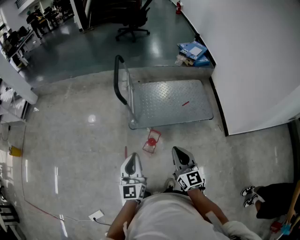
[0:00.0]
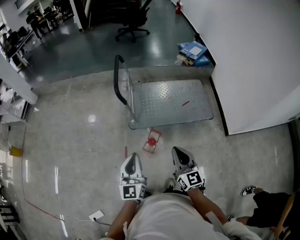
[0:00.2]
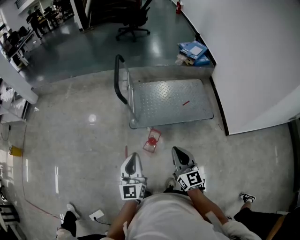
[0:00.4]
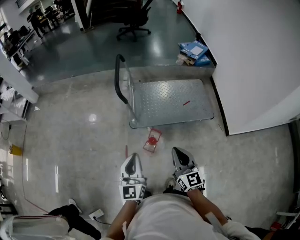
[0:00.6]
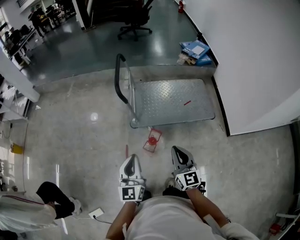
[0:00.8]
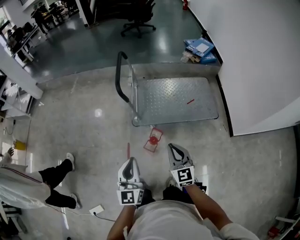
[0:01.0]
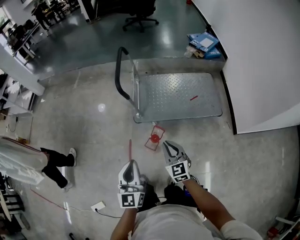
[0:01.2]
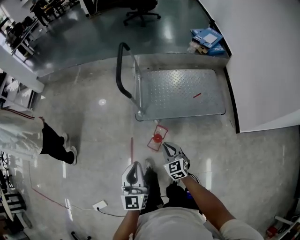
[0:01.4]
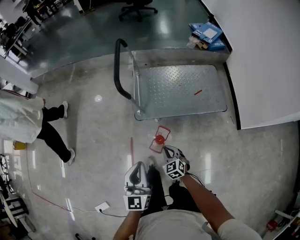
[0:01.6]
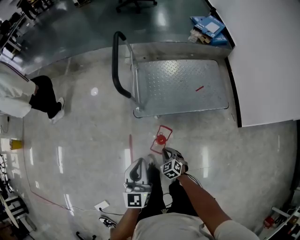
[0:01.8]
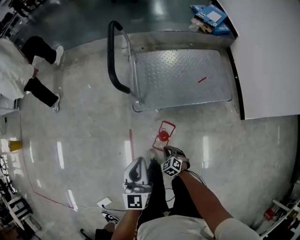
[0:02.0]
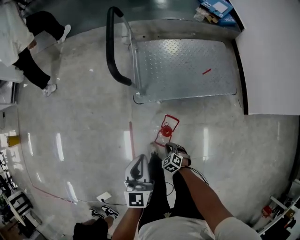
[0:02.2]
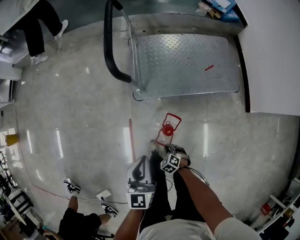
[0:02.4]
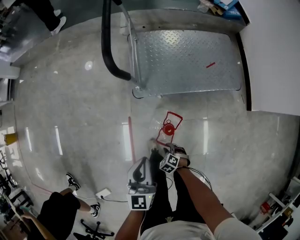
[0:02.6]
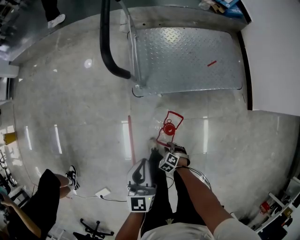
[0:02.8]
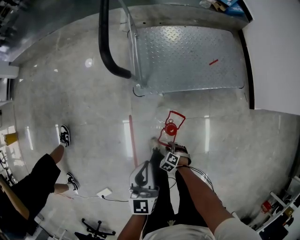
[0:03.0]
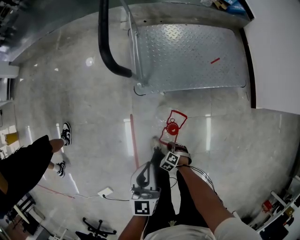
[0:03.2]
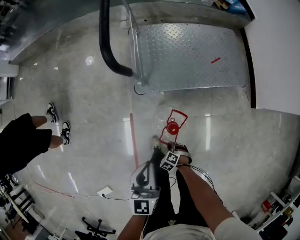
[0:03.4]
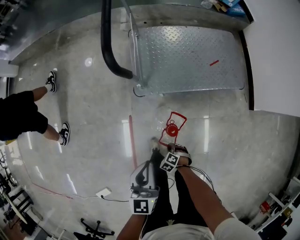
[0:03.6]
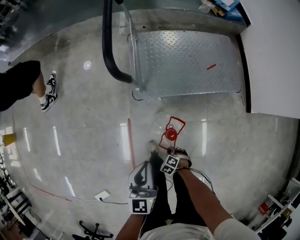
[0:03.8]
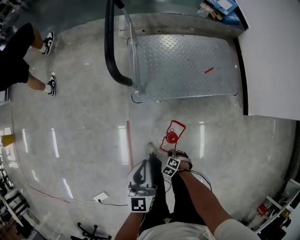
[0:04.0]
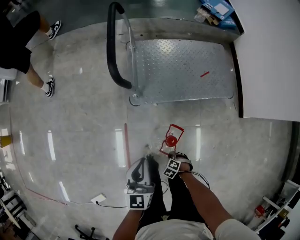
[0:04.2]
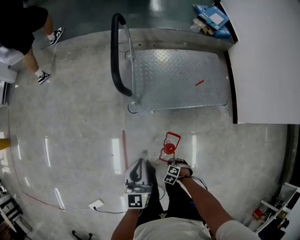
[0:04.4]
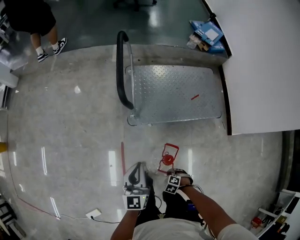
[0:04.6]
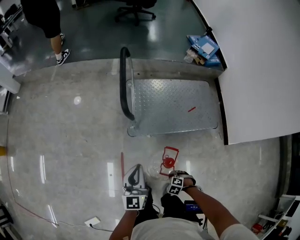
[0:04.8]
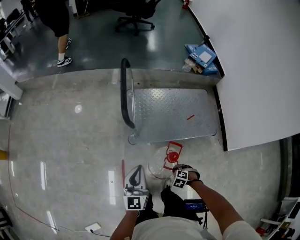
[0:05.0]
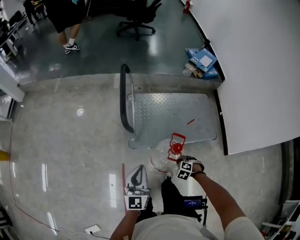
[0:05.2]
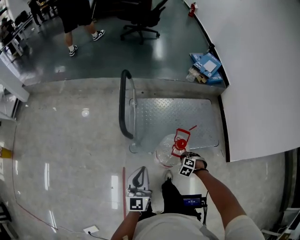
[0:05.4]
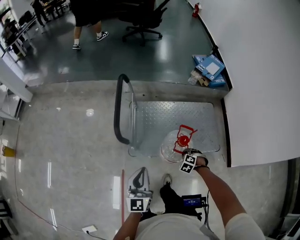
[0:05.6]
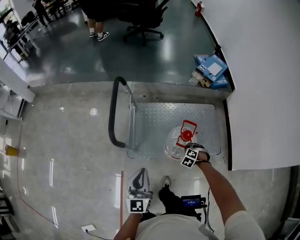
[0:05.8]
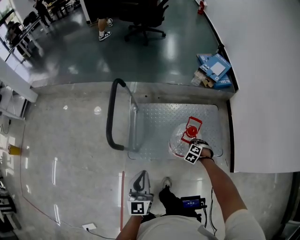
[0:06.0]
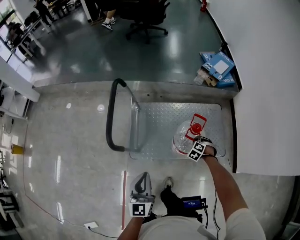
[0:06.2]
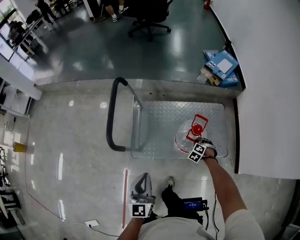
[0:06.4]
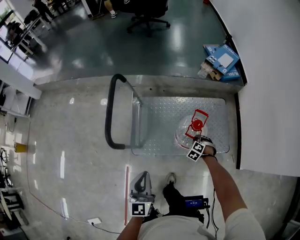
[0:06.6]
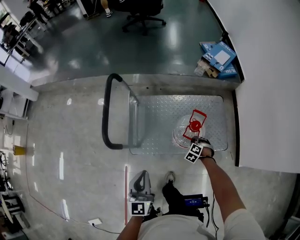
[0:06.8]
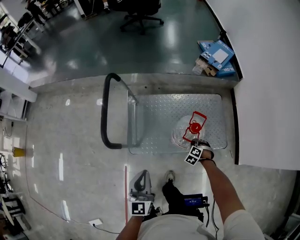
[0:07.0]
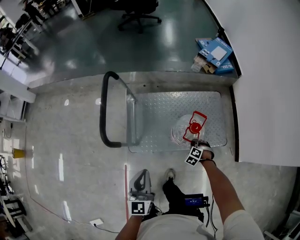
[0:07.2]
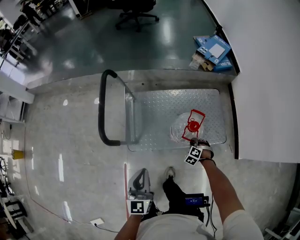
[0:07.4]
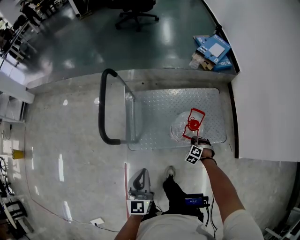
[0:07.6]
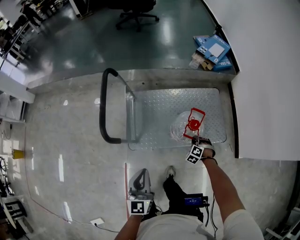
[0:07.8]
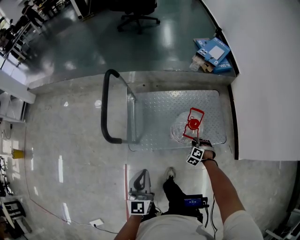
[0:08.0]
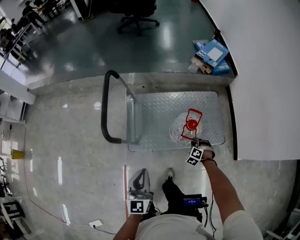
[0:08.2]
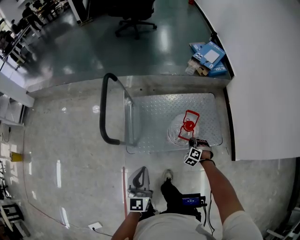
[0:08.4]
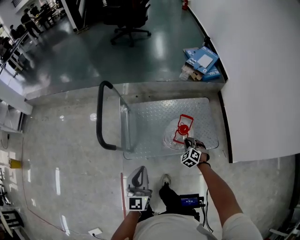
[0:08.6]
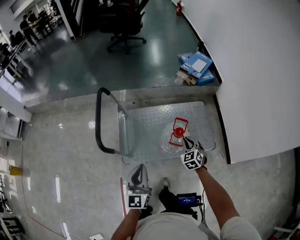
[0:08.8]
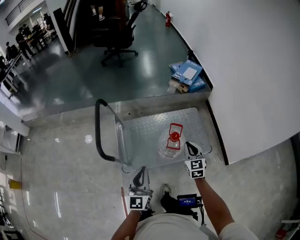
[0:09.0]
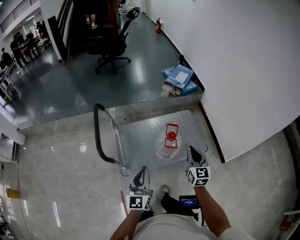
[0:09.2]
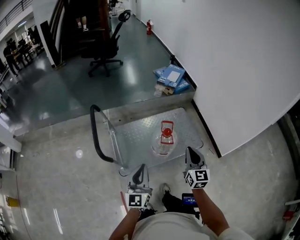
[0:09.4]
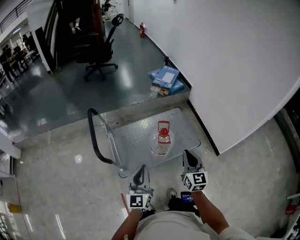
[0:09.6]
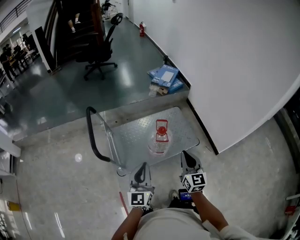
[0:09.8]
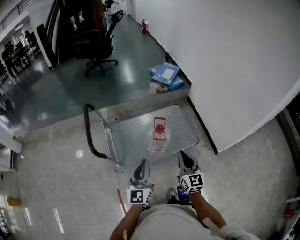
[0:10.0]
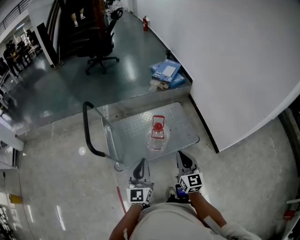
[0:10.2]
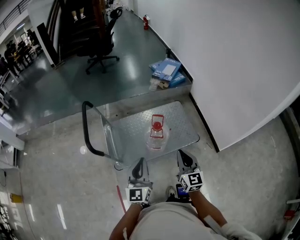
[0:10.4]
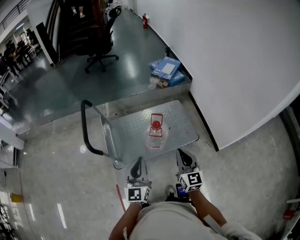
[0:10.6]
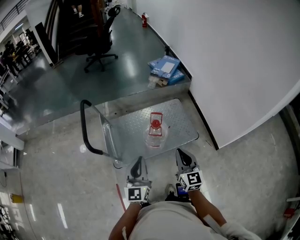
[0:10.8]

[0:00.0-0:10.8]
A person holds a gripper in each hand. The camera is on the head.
0.0 to 1.6 s: The right gripper heads downward, covering about 25 cm, and tilts its fingers approximately 40 degrees downward. The left gripper travels forward and downward by roughly 10 cm.
1.6 to 3.0 s: The right gripper is displaced downward by some 30 cm, points its fingers some 40 degrees further downward, and opens up, while the left gripper heads downward, covering some 20 cm.
3.0 to 4.6 s: The right gripper is displaced upward by roughly 15 cm. Meanwhile the left gripper travels upward by about 5 cm.
4.6 to 6.2 s: The left gripper changes place by roughly 25 cm. The right gripper moves some 60 cm, and rotates some 30 degrees.
6.2 to 7.8 s: The right gripper shifts approximately 5 cm backward.
7.8 to 9.2 s: The left gripper travels upward by some 10 cm, and turns by approximately 20 degrees. The right gripper heads upward, covering roughly 35 cm, and tips its fingers upward by approximately 50 degrees.
9.2 to 10.8 s: The left gripper travels to the right by some 10 cm, while the right gripper goes about 10 cm backward.

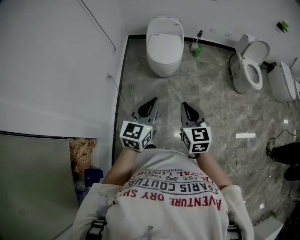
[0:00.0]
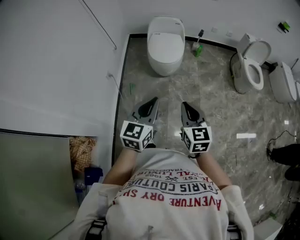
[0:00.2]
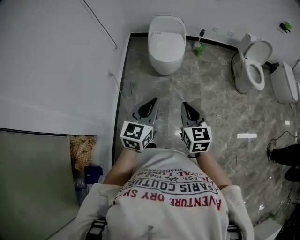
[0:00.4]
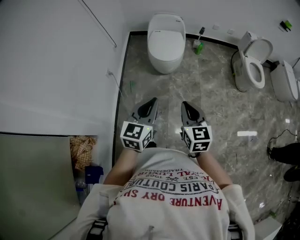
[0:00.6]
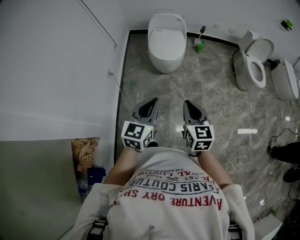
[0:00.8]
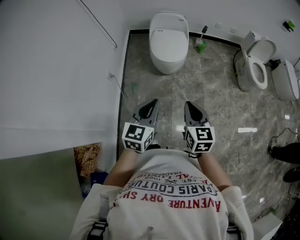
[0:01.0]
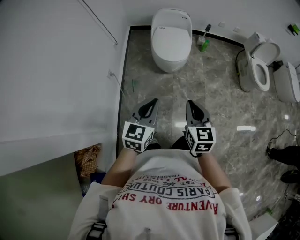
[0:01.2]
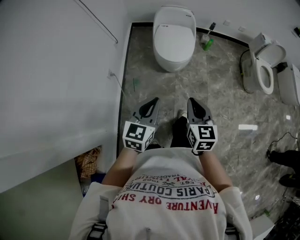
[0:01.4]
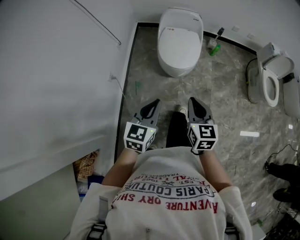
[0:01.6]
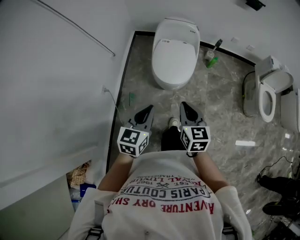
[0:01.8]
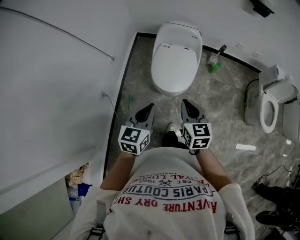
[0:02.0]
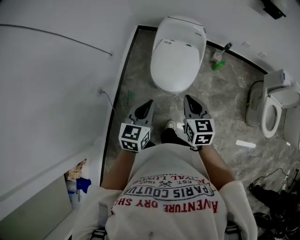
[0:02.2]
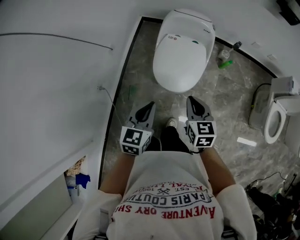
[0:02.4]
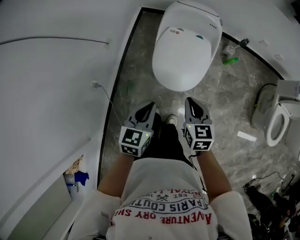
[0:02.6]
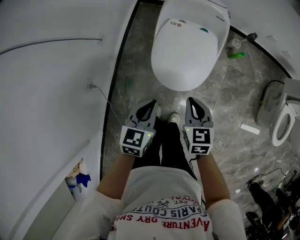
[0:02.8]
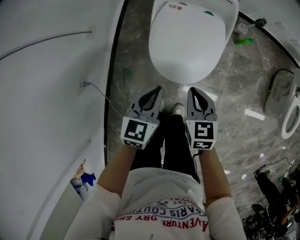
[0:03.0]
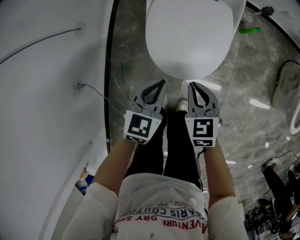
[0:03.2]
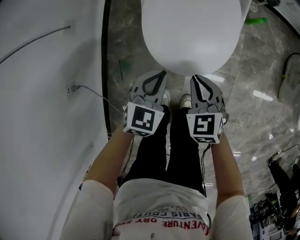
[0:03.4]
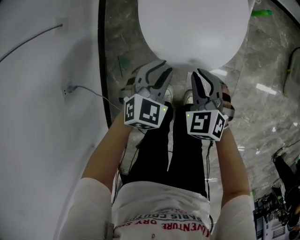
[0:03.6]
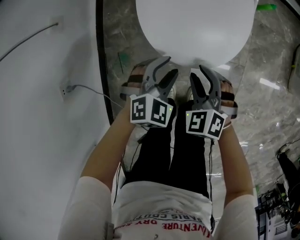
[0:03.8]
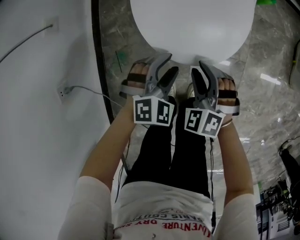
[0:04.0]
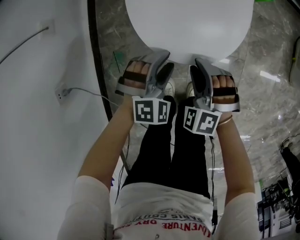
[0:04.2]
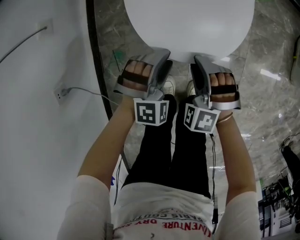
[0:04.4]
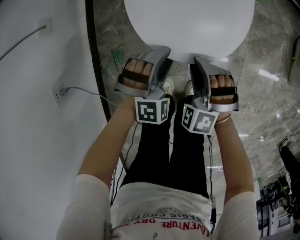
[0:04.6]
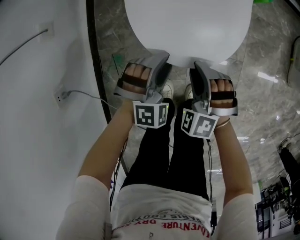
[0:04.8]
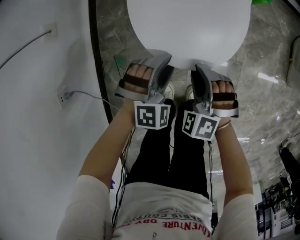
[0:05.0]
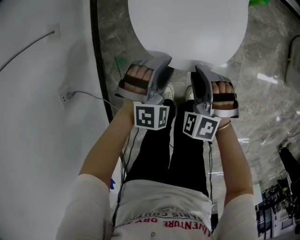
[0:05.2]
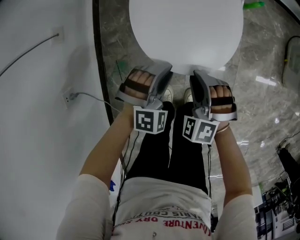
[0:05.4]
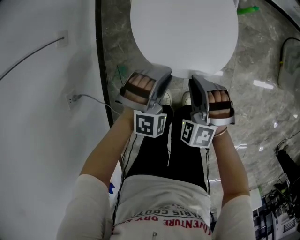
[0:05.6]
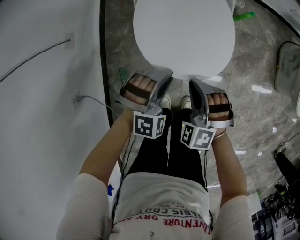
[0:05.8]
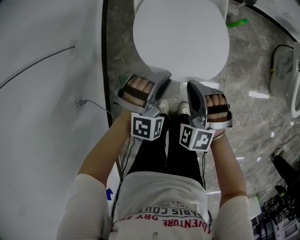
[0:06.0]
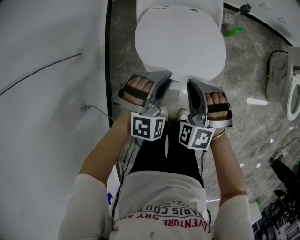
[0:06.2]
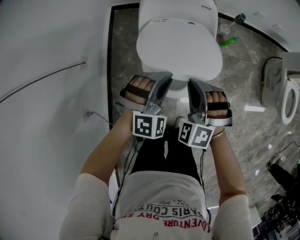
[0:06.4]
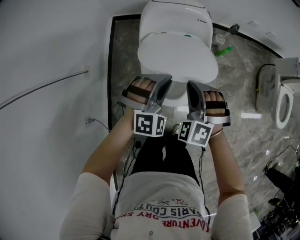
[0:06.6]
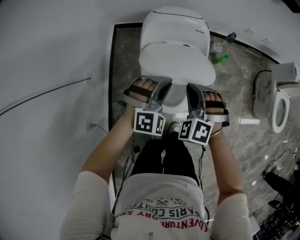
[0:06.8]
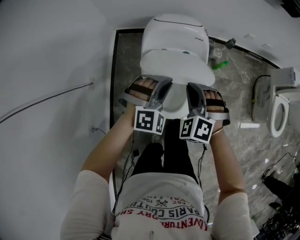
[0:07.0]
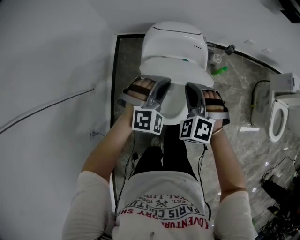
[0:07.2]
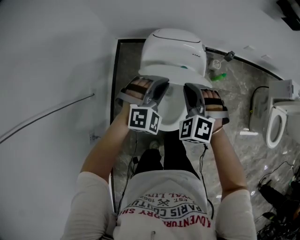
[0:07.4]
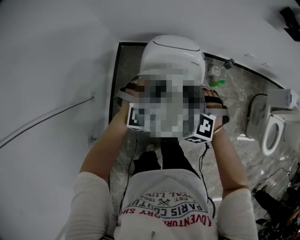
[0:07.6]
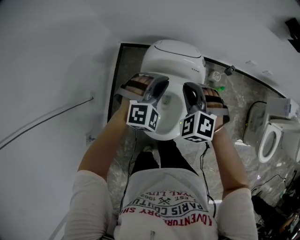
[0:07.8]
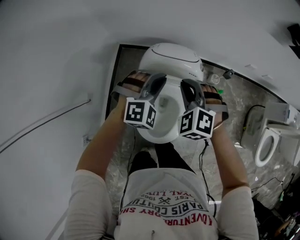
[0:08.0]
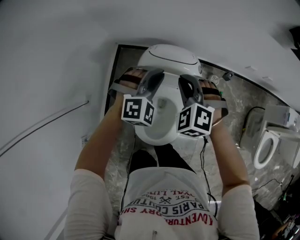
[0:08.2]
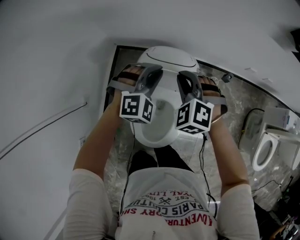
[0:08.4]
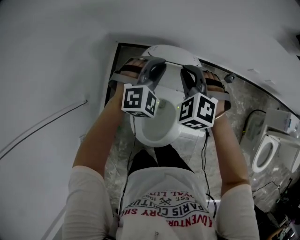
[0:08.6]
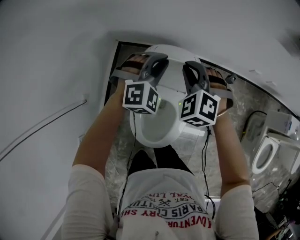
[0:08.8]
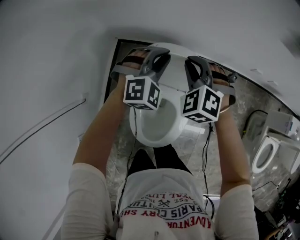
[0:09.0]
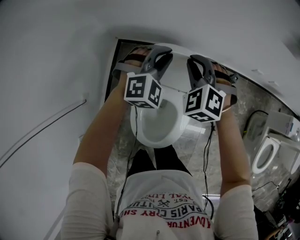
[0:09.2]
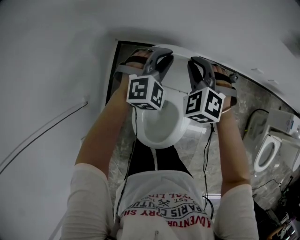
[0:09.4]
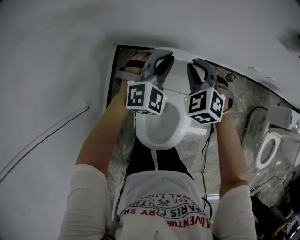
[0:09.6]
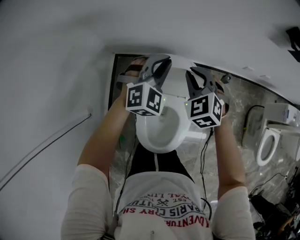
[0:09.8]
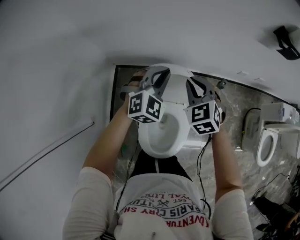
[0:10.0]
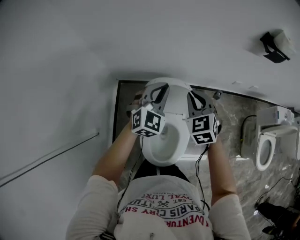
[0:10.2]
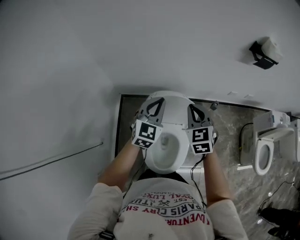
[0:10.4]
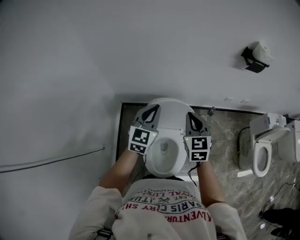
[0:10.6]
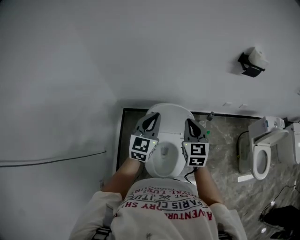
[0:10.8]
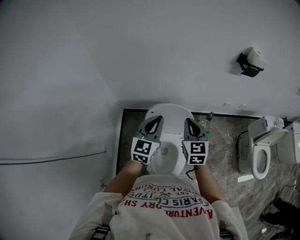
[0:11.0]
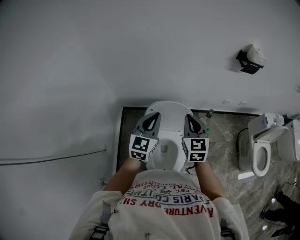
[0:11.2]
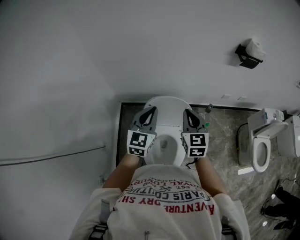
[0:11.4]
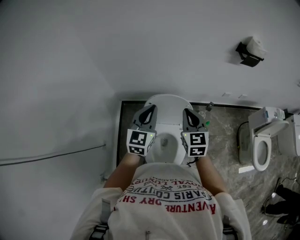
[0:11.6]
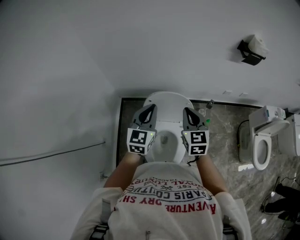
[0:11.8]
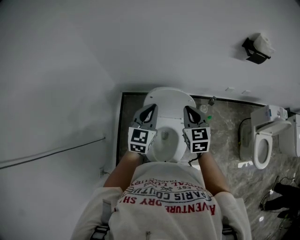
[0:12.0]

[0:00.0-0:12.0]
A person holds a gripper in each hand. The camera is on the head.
0.0 to 1.6 s: Both grippers move forward, some 25 cm.
1.6 to 3.0 s: The two grippers go some 50 cm forward and downward. The right gripper rotates approximately 20 degrees.
3.0 to 4.4 s: Both grippers move downward, some 25 cm. The right gripper twists approximately 60 degrees counterclockwise, seen from behind, and opens, while the left gripper twists roughly 70 degrees clockwise, seen from behind, and opens its fingers.
4.4 to 6.0 s: The grippers both shift upward by roughly 20 cm. The left gripper closes.
6.0 to 7.6 s: The two grippers go approximately 35 cm forward and upward.
7.6 to 9.0 s: Both grippers travel together forward, roughly 20 cm.
9.0 to 10.4 s: Both grippers travel together upward and backward, approximately 20 cm. The left gripper turns by approximately 40 degrees. The right gripper twists some 40 degrees clockwise, seen from behind.
10.4 to 12.0 s: The grippers both shift backward by about 5 cm.

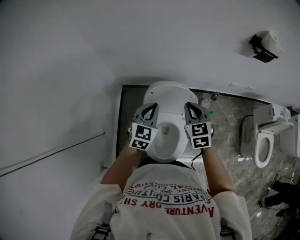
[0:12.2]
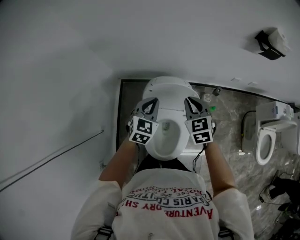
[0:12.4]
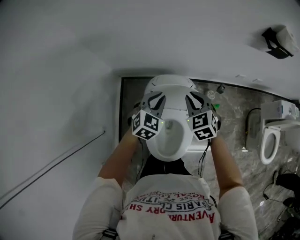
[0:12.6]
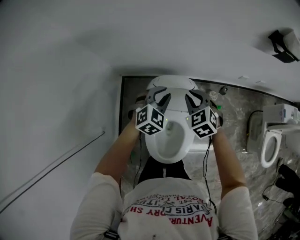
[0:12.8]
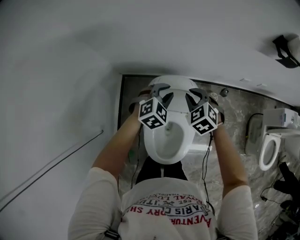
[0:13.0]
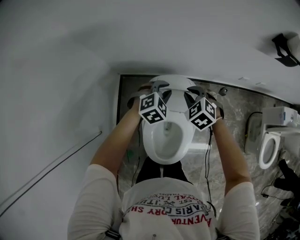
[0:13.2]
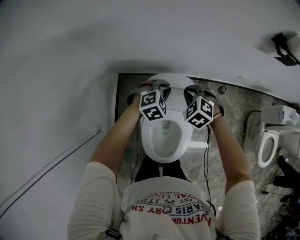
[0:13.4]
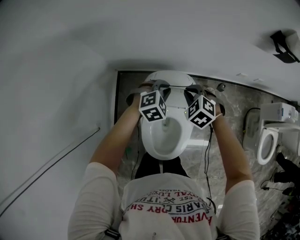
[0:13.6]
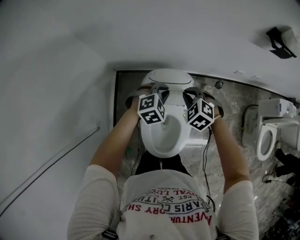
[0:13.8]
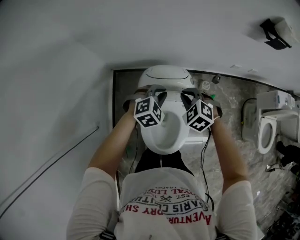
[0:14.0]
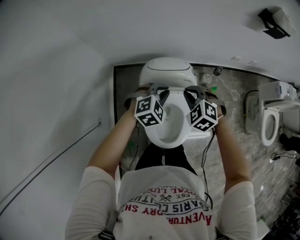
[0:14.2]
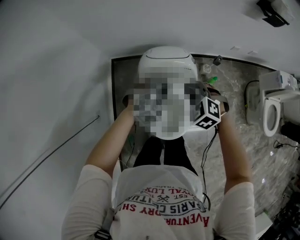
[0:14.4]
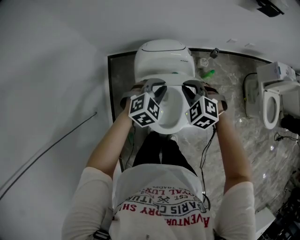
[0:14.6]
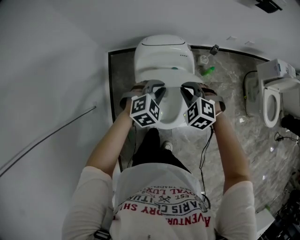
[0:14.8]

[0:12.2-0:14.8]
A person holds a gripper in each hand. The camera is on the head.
12.2 to 13.4 s: The left gripper goes roughly 20 cm forward and downward, and changes its angle by roughly 40 degrees, while the right gripper travels downward and forward by about 20 cm, and turns by about 40 degrees.
13.4 to 14.8 s: The grippers both shift backward by about 25 cm.
